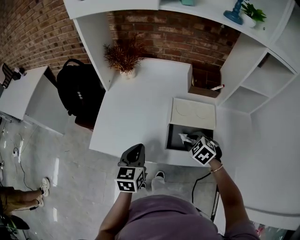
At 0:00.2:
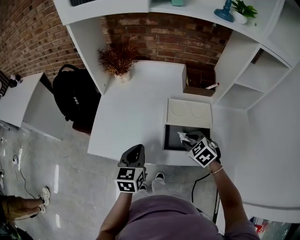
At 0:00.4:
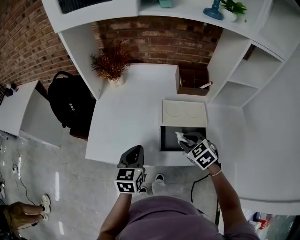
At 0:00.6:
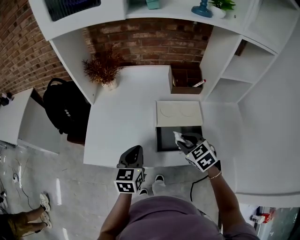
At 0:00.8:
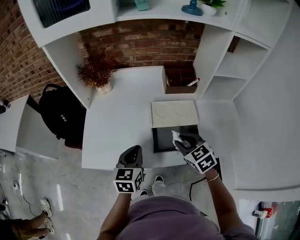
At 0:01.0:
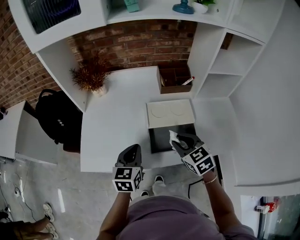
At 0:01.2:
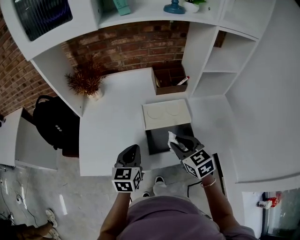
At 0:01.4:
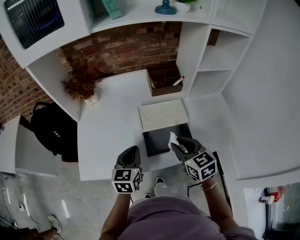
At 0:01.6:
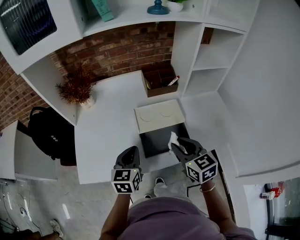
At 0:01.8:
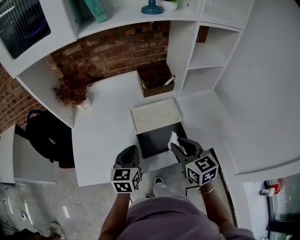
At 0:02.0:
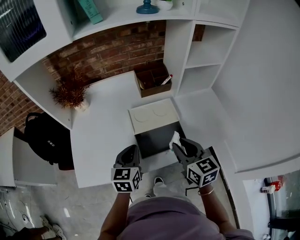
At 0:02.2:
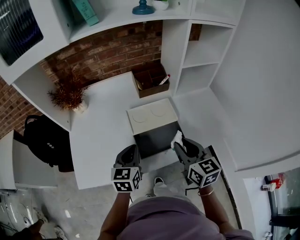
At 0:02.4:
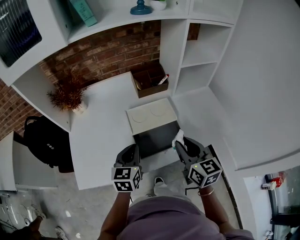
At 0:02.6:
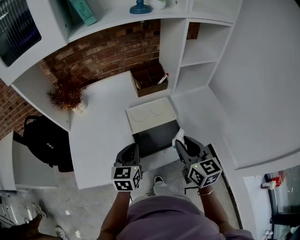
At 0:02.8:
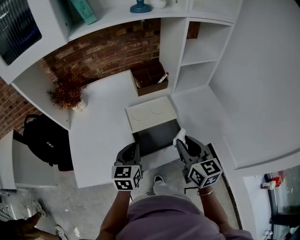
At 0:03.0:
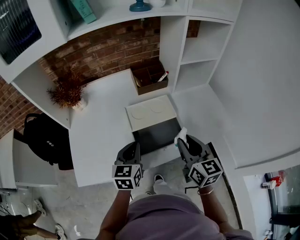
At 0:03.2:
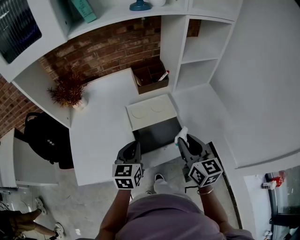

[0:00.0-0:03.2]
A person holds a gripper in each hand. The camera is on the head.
0:00.0 to 0:01.6: The left gripper moves to the right, approximately 10 cm. Meanwhile the right gripper goes approximately 15 cm upward, and points its fingers approximately 40 degrees further upward.
0:01.6 to 0:03.2: The right gripper moves to the right, roughly 5 cm, and swivels about 20 degrees.

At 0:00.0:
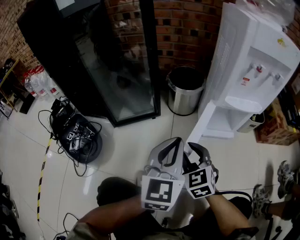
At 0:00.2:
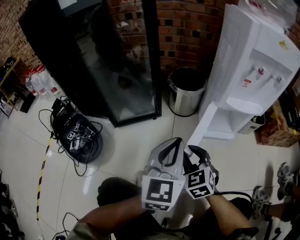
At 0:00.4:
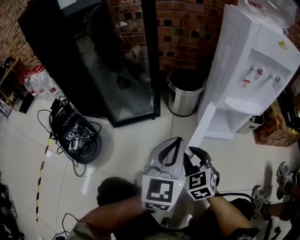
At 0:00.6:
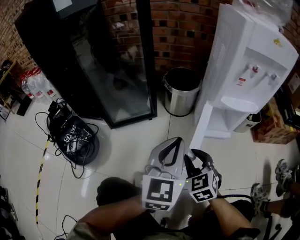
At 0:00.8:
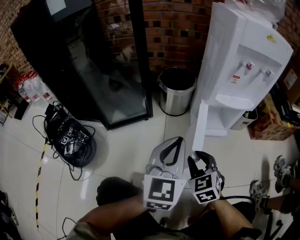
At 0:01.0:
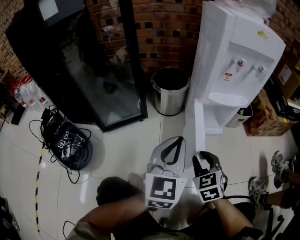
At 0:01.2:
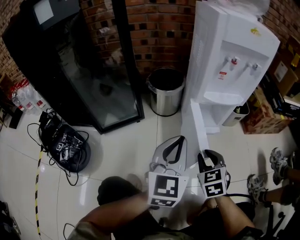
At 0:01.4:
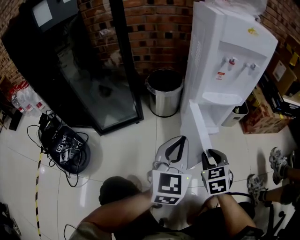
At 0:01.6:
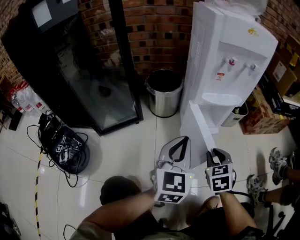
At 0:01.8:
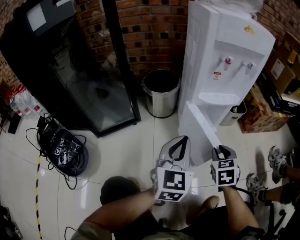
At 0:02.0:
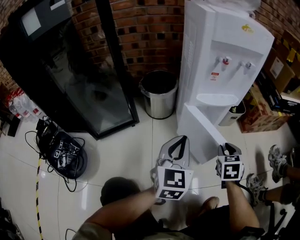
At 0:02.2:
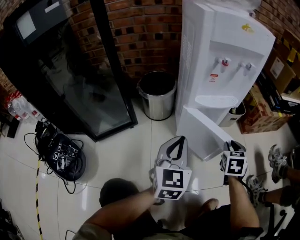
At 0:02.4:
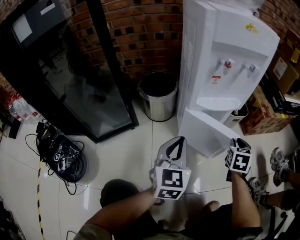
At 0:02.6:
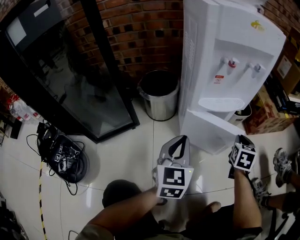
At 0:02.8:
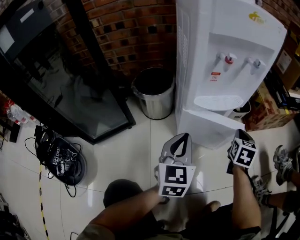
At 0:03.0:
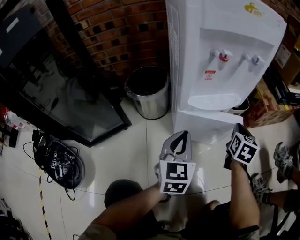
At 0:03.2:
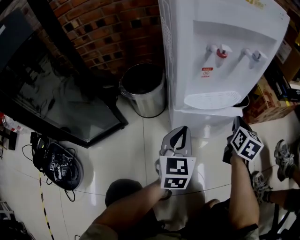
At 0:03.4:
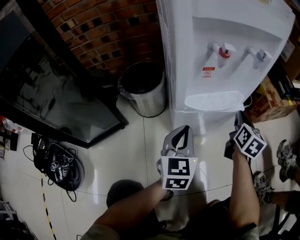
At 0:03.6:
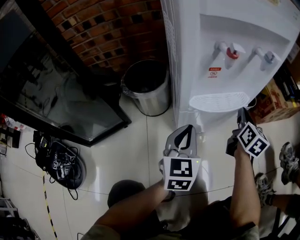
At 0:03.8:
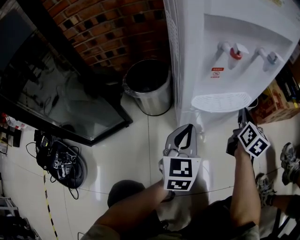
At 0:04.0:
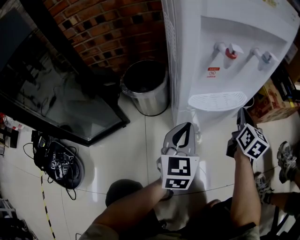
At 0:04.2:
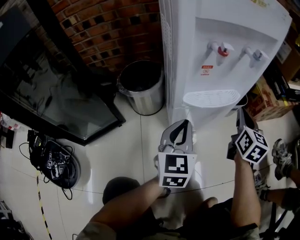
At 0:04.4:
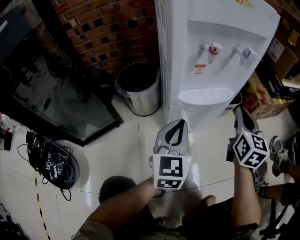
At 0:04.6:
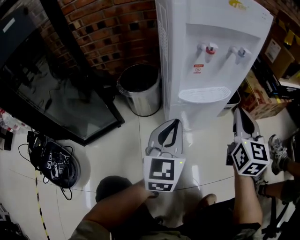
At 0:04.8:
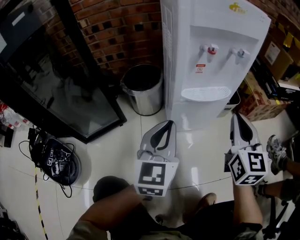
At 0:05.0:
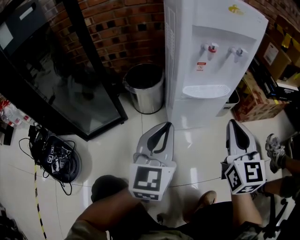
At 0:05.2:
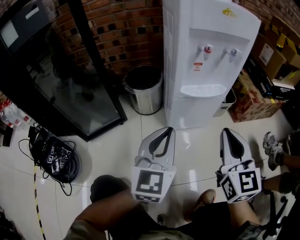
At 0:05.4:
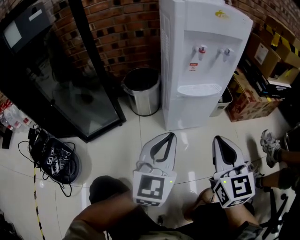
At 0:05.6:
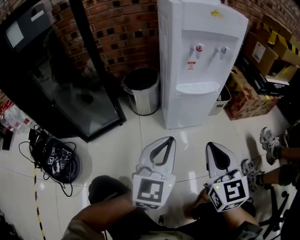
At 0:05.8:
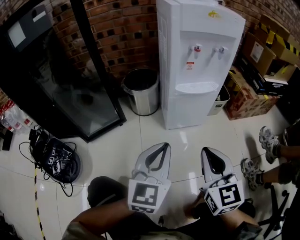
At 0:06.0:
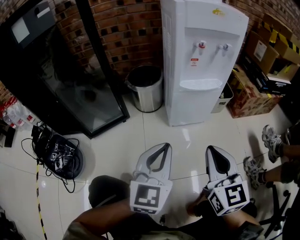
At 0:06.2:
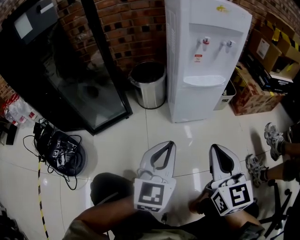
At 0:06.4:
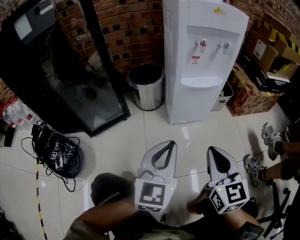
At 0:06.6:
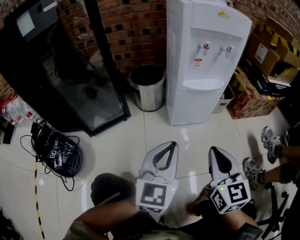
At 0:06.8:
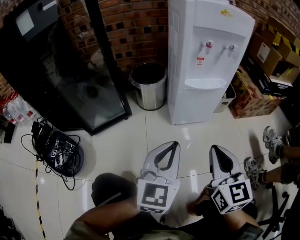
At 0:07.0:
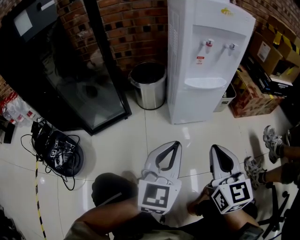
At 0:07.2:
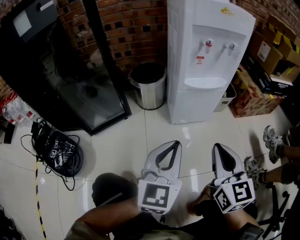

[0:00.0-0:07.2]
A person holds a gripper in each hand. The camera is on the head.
0:00.0 to 0:01.4: The right gripper travels to the right by about 15 cm, and rotates some 30 degrees, while the left gripper moves to the right, some 10 cm.
0:01.4 to 0:02.8: The right gripper travels forward and to the right by roughly 25 cm, and swivels roughly 40 degrees, while the left gripper goes roughly 15 cm forward and downward.
0:02.8 to 0:04.4: The right gripper moves upward, roughly 10 cm, and swivels some 20 degrees.
0:04.4 to 0:05.8: The left gripper travels backward by some 20 cm, while the right gripper travels backward and to the left by some 30 cm, and rotates some 20 degrees.
0:05.8 to 0:07.2: There are only small adjustments of the grippers.

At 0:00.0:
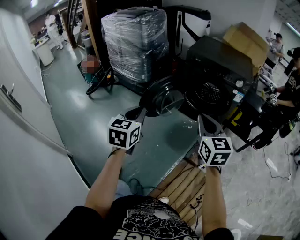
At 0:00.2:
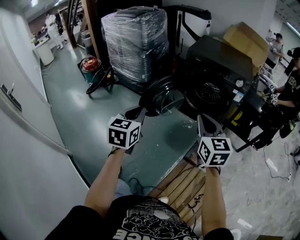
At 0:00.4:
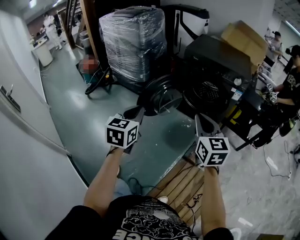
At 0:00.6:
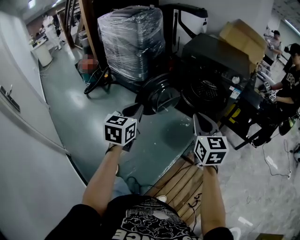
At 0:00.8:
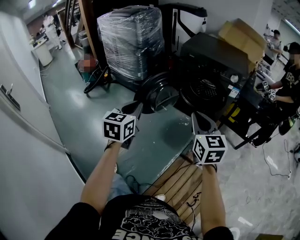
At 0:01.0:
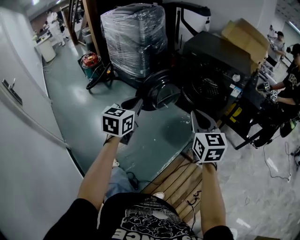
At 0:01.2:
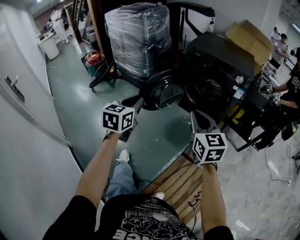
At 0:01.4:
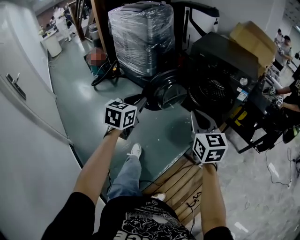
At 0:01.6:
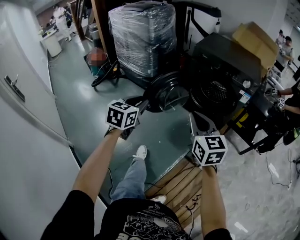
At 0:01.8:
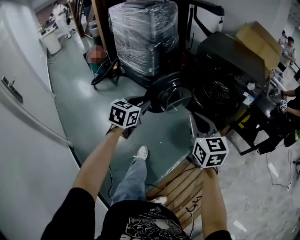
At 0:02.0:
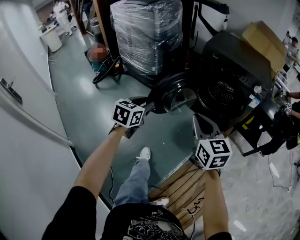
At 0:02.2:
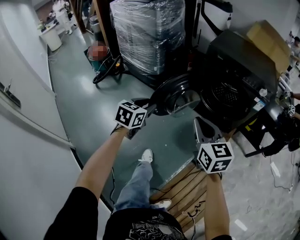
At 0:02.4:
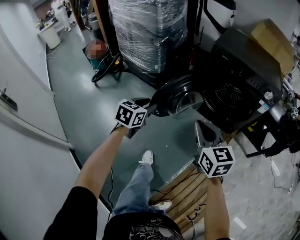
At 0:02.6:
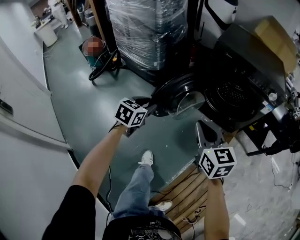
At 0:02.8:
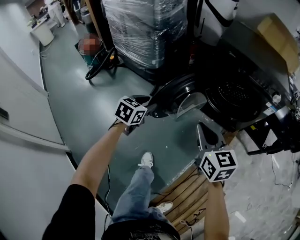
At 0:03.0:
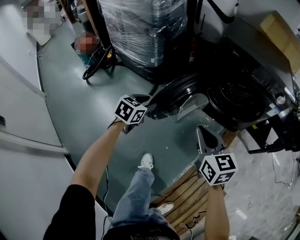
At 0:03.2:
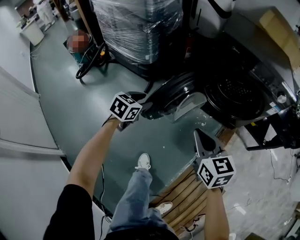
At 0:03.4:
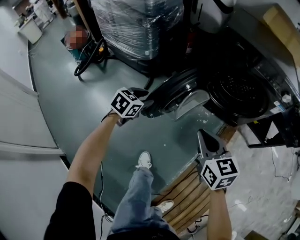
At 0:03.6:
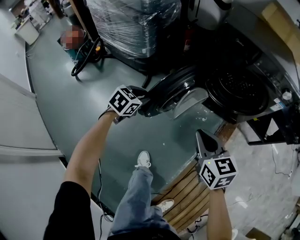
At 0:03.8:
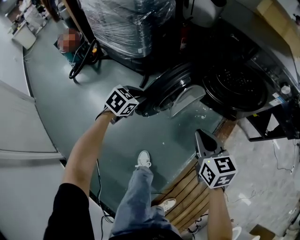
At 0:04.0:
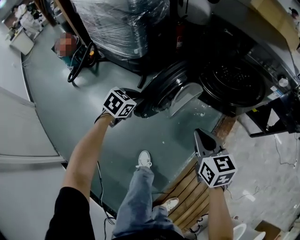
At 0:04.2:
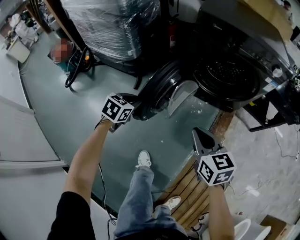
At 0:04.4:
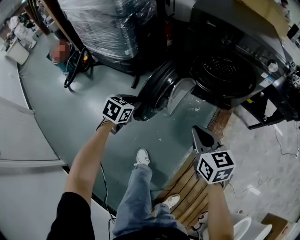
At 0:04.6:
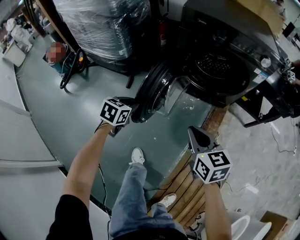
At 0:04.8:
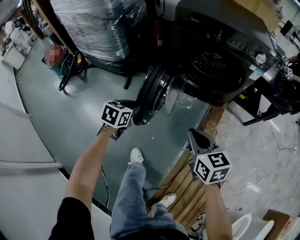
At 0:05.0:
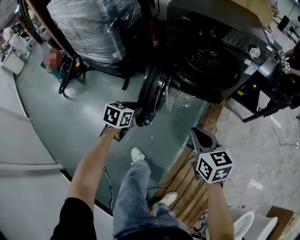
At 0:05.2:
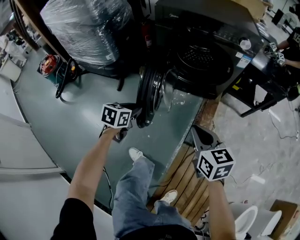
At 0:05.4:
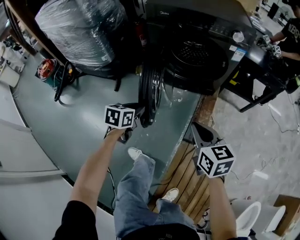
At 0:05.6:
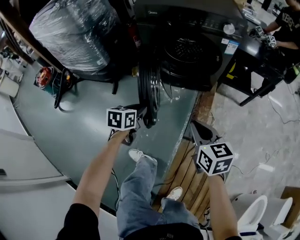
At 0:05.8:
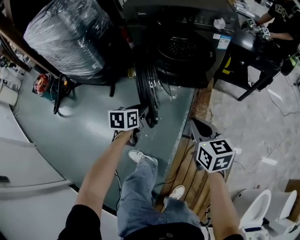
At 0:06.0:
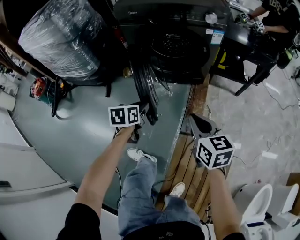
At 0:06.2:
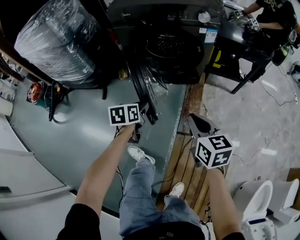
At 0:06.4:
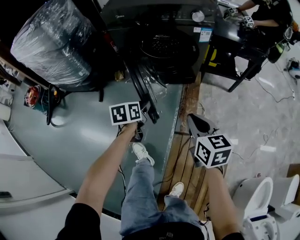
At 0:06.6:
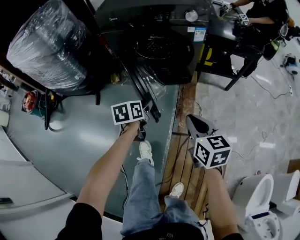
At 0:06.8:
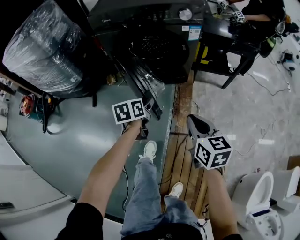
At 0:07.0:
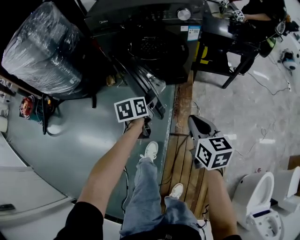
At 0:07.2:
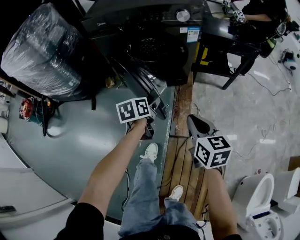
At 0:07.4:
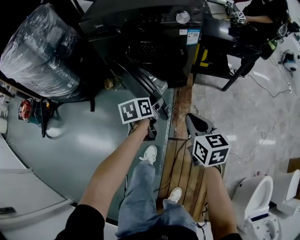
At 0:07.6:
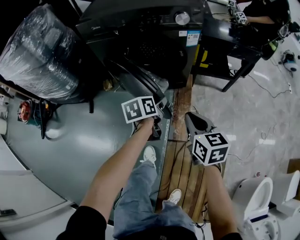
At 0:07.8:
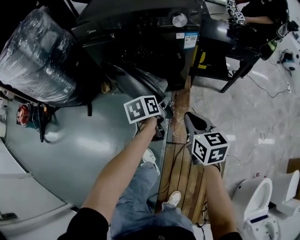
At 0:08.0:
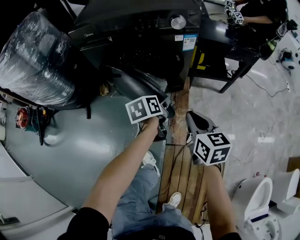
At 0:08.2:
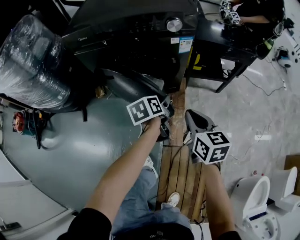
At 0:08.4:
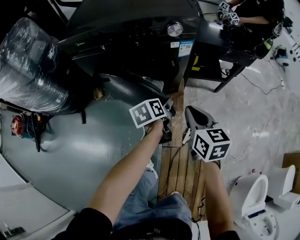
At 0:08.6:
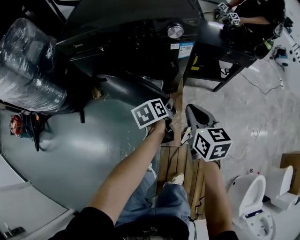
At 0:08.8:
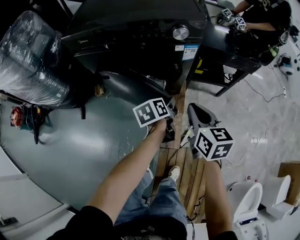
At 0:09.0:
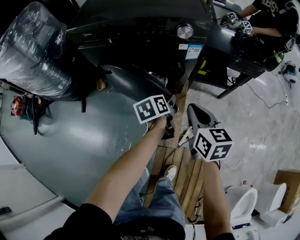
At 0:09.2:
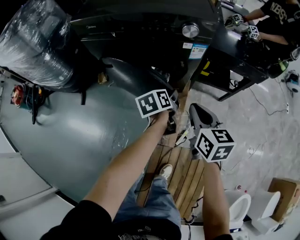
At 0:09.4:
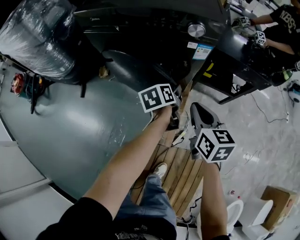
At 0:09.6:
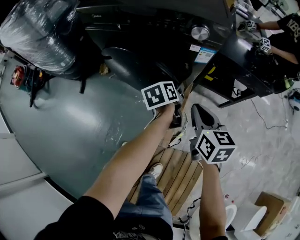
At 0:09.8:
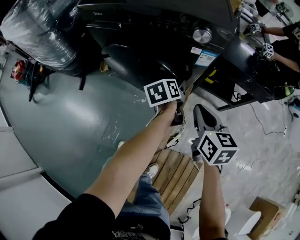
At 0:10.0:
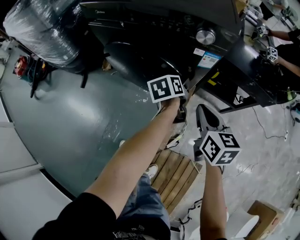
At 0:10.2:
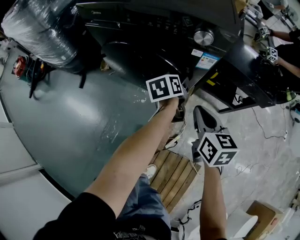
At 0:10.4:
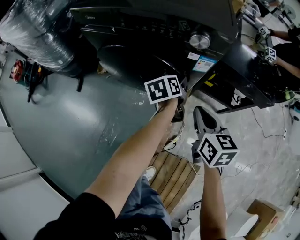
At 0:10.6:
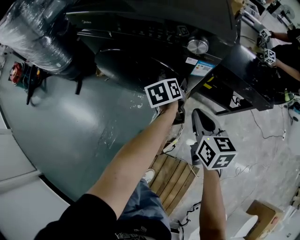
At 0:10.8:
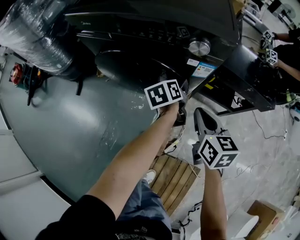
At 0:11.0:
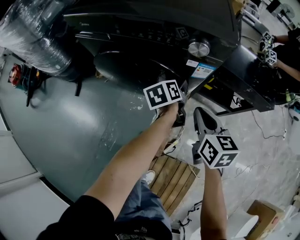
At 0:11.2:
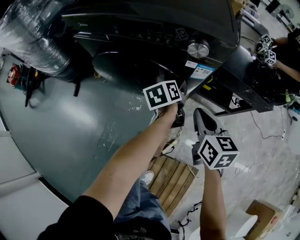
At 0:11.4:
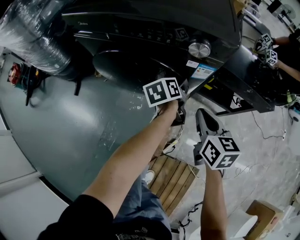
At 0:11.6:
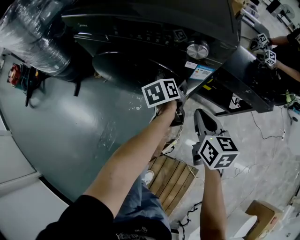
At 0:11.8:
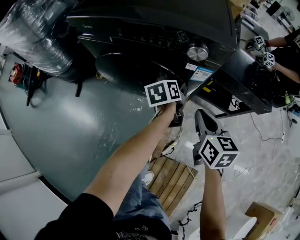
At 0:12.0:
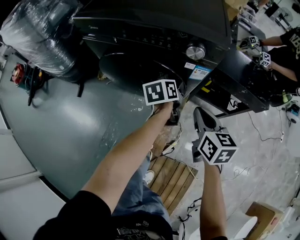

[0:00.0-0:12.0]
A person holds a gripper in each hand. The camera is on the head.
0:00.0 to 0:01.6: The left gripper moves some 5 cm.
0:01.6 to 0:03.0: The left gripper shifts some 30 cm forward and downward, and changes its angle by approximately 20 degrees. Meanwhile the right gripper heads forward, downward and to the left, covering roughly 25 cm.
0:03.0 to 0:04.4: The left gripper moves downward, some 5 cm; the right gripper moves downward and to the right, approximately 10 cm.
0:04.4 to 0:06.0: Both grippers move to the right, roughly 25 cm.
0:06.0 to 0:07.6: The left gripper shifts approximately 20 cm to the right and forward, and opens up. Meanwhile the right gripper travels forward and to the right by some 10 cm.
0:07.6 to 0:09.0: The left gripper moves forward and to the right, roughly 10 cm, while the right gripper is displaced forward by approximately 10 cm.
0:09.0 to 0:10.4: The right gripper is displaced forward by roughly 10 cm, while the left gripper shifts roughly 15 cm forward.
0:10.4 to 0:12.0: The left gripper closes its fingers.

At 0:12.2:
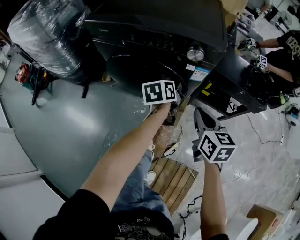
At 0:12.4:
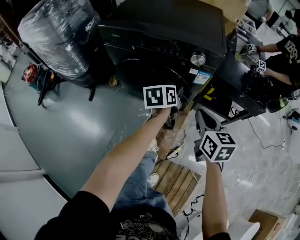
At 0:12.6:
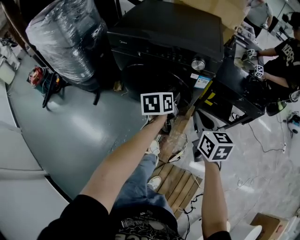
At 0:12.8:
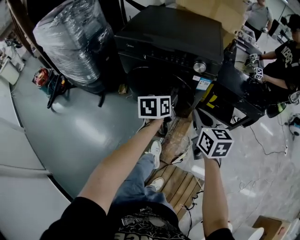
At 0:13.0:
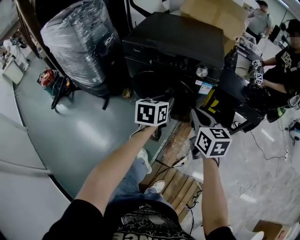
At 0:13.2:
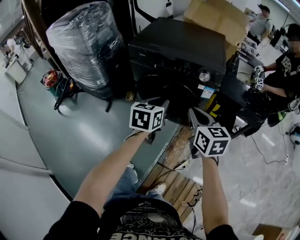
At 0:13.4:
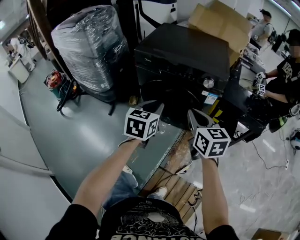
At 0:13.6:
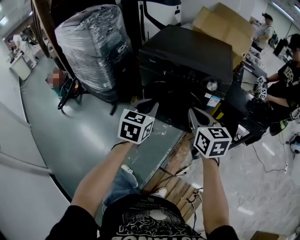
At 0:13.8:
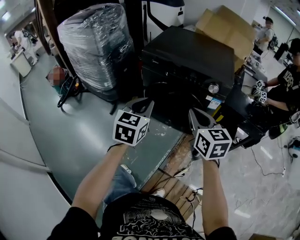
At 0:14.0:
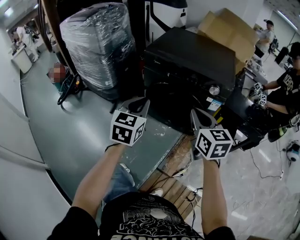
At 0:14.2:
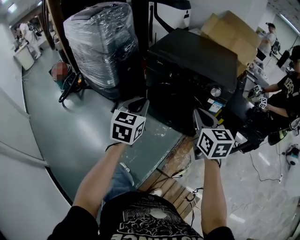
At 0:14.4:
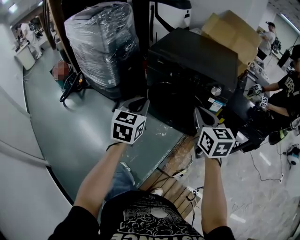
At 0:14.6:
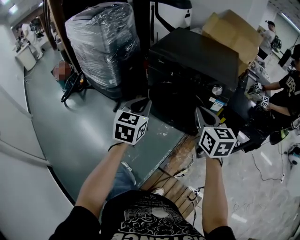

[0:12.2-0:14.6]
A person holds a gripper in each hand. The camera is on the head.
0:12.2 to 0:13.4: The left gripper moves upward, backward and to the left, some 30 cm, and rotates roughly 40 degrees. Meanwhile the right gripper moves upward, to the left and backward, roughly 20 cm.
0:13.4 to 0:14.6: The left gripper heads to the left, covering roughly 10 cm.
